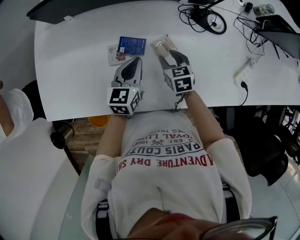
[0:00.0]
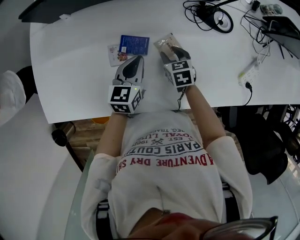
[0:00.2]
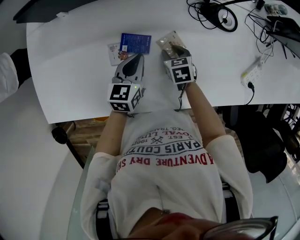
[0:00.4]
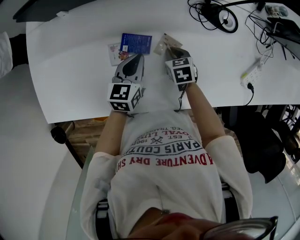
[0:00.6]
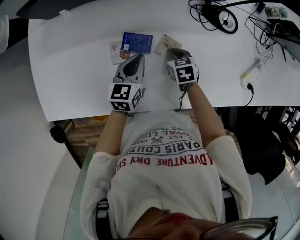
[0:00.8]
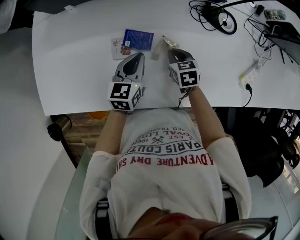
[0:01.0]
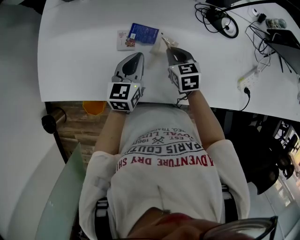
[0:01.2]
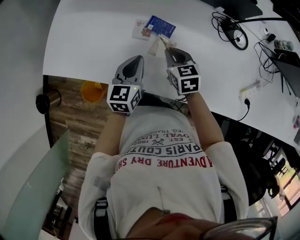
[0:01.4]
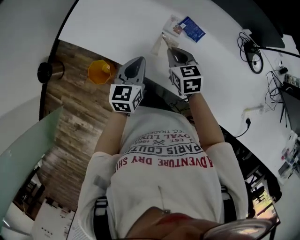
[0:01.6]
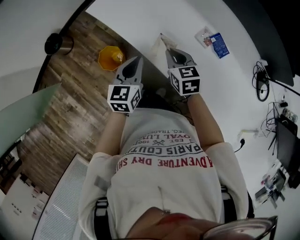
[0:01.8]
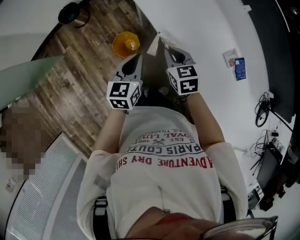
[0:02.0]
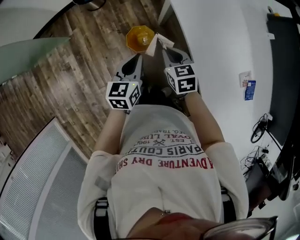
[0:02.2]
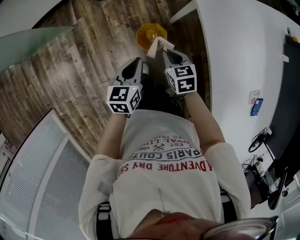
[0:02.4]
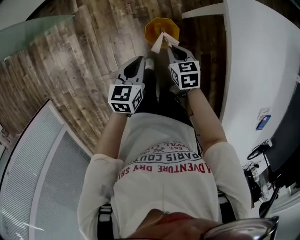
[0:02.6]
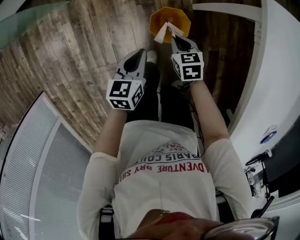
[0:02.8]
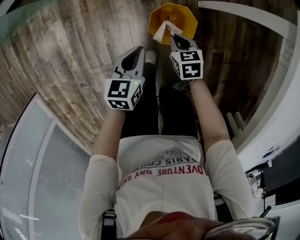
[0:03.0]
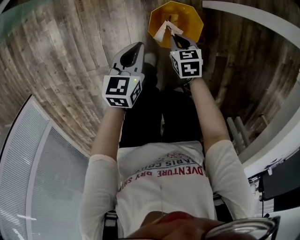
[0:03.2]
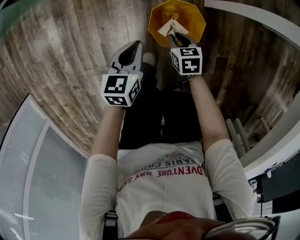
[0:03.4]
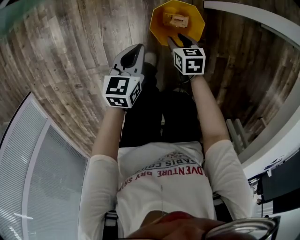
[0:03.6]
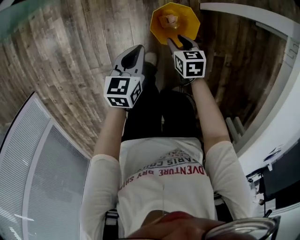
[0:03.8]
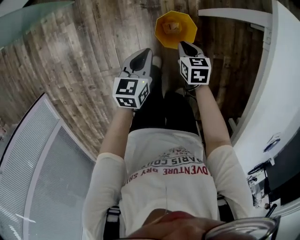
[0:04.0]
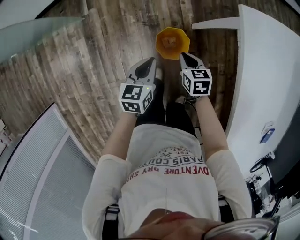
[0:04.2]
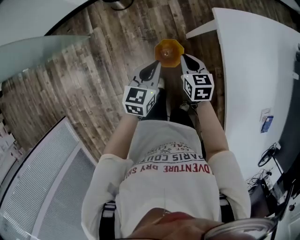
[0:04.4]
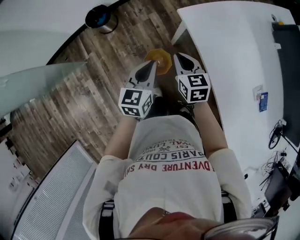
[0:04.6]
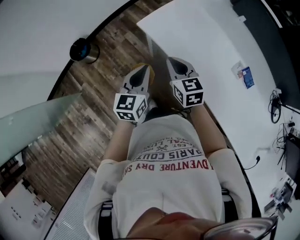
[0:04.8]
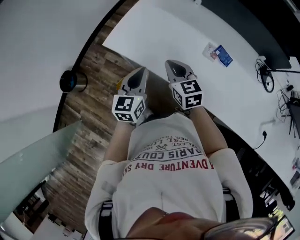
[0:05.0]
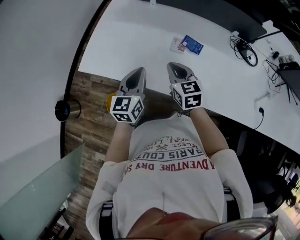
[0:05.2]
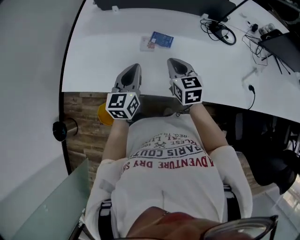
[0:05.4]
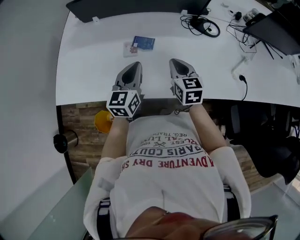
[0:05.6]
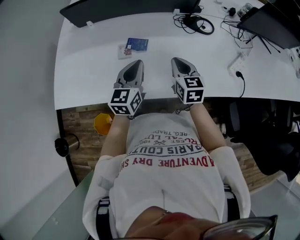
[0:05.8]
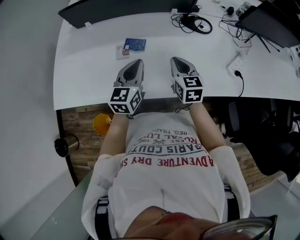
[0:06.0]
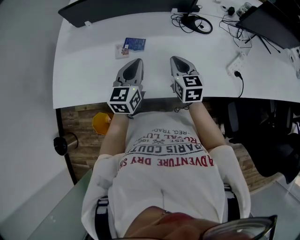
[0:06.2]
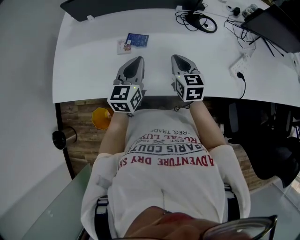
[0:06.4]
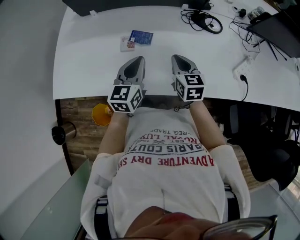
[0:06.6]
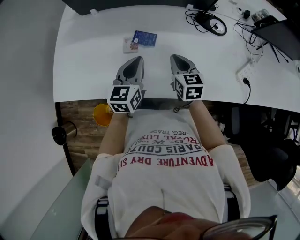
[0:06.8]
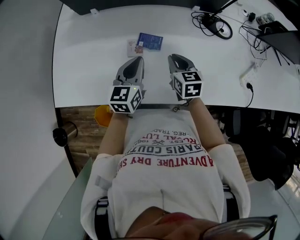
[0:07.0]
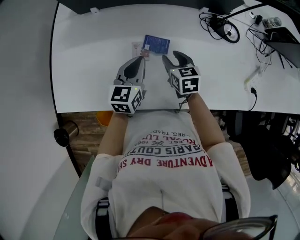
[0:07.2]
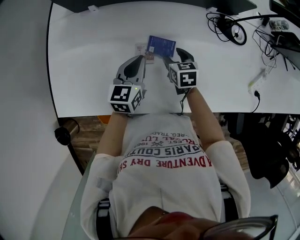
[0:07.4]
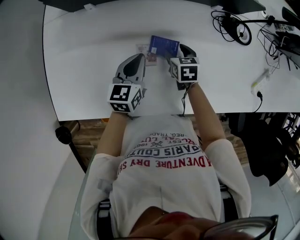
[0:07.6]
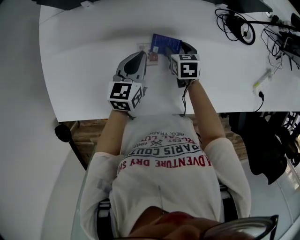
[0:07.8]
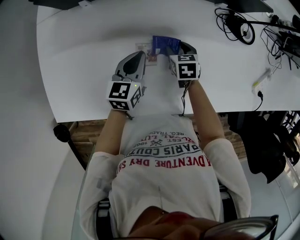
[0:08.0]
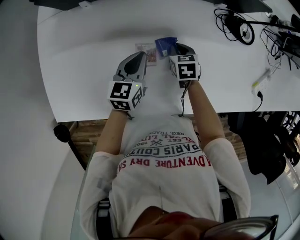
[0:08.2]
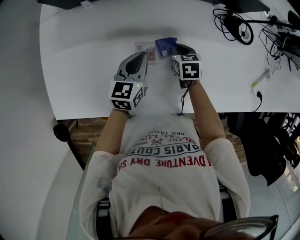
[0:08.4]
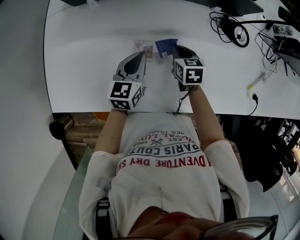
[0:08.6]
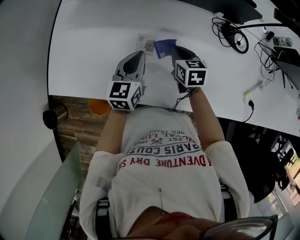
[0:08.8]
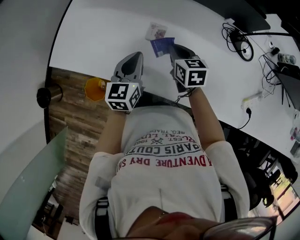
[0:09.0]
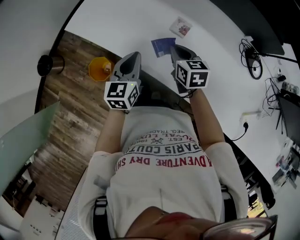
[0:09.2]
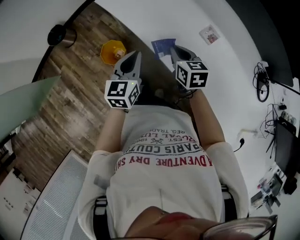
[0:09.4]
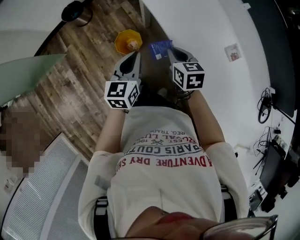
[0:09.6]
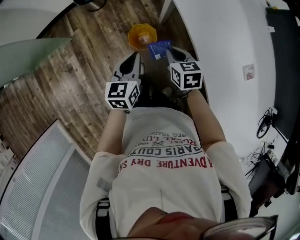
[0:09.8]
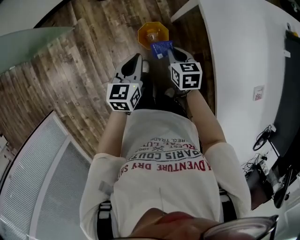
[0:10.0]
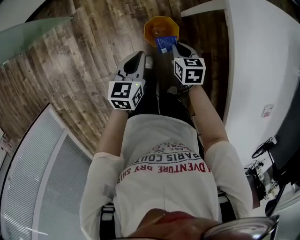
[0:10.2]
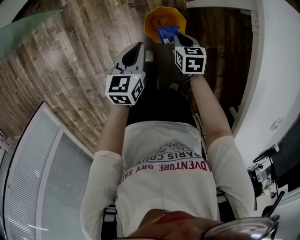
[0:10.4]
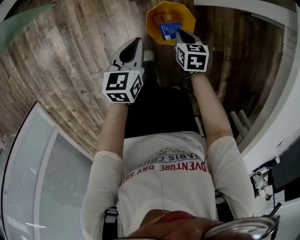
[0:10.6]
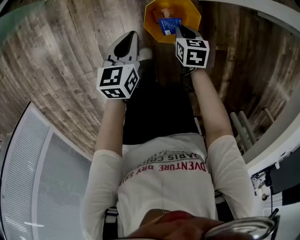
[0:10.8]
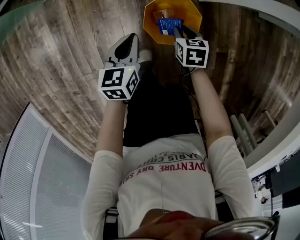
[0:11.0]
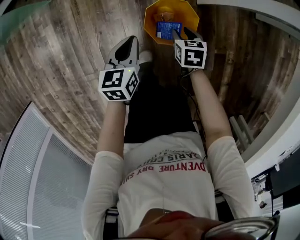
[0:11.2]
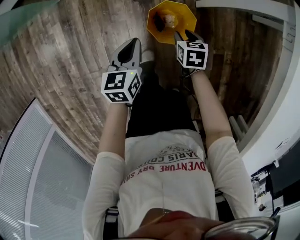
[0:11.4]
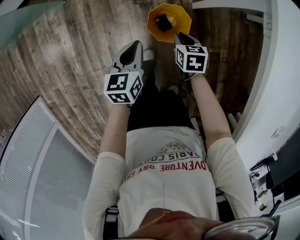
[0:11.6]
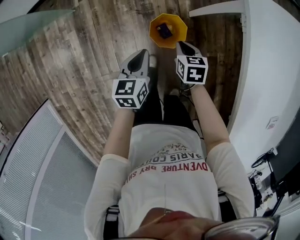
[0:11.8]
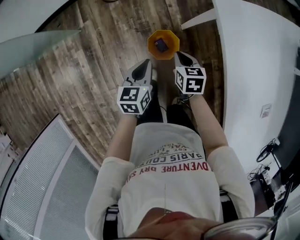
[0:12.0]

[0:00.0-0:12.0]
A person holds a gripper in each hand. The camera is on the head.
0:00.0 to 0:01.6: The left gripper changes place by some 25 cm, and swivels about 30 degrees. Meanwhile the right gripper moves some 25 cm, changes its angle by roughly 30 degrees, and closes its fingers.
0:01.6 to 0:03.0: The pair of grippers is taken some 50 cm. The left gripper rotates about 60 degrees; the right gripper changes its angle by about 60 degrees.
0:03.0 to 0:04.4: Both grippers travel together upward, about 30 cm. The right gripper rotates approximately 20 degrees, and opens and closes again.
0:04.4 to 0:06.0: Both grippers are carried some 70 cm. The left gripper turns by about 70 degrees, while the right gripper turns by roughly 80 degrees.
0:06.0 to 0:07.6: The left gripper heads forward, to the left and downward, covering approximately 25 cm. Meanwhile the right gripper moves forward, downward and to the left, roughly 30 cm, rotates some 30 degrees, and opens.
0:07.6 to 0:09.0: The right gripper moves about 15 cm, turns by about 30 degrees, and closes up; the left gripper ends up roughly 15 cm from where it was, and changes its angle by some 30 degrees.
0:09.0 to 0:10.4: Both grippers are carried approximately 60 cm. The left gripper changes its angle by some 60 degrees, while the right gripper rotates roughly 60 degrees.
0:10.4 to 0:12.0: Both grippers move upward, approximately 15 cm. The right gripper opens, then closes once more.

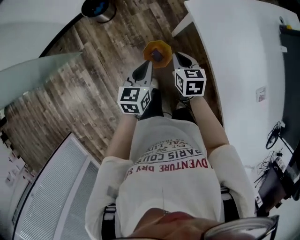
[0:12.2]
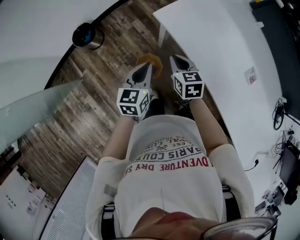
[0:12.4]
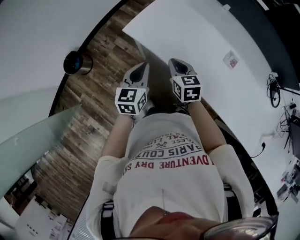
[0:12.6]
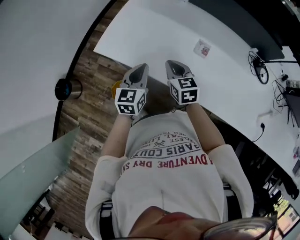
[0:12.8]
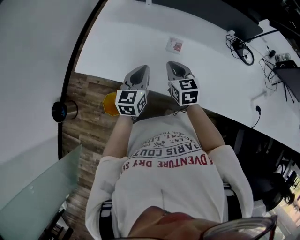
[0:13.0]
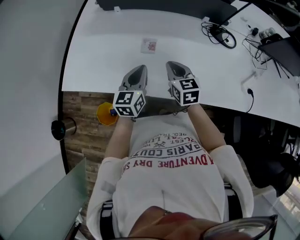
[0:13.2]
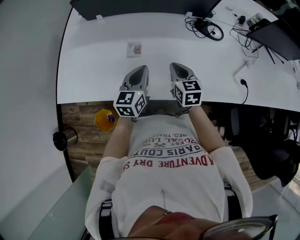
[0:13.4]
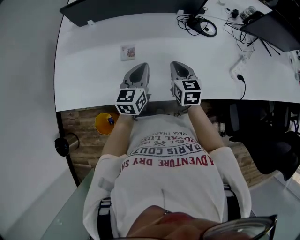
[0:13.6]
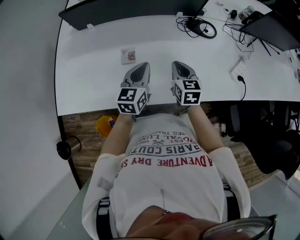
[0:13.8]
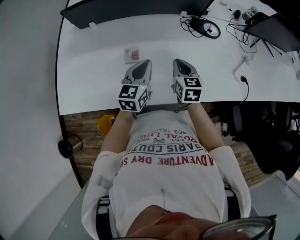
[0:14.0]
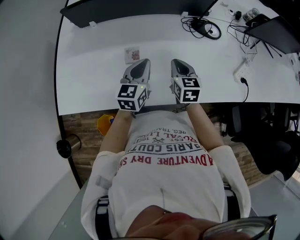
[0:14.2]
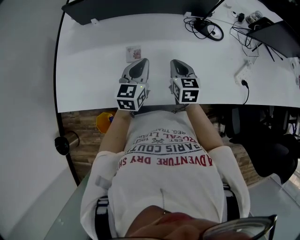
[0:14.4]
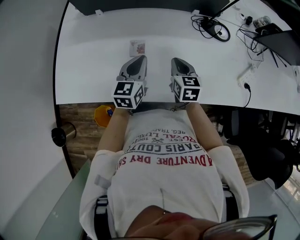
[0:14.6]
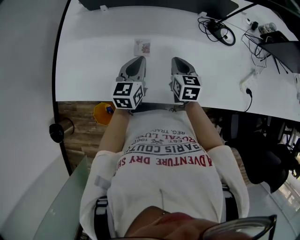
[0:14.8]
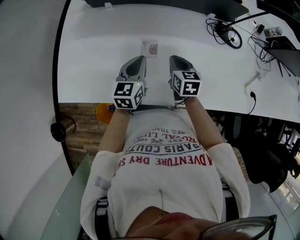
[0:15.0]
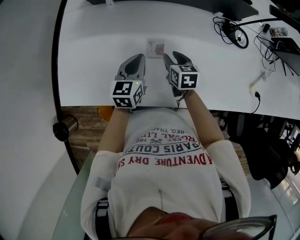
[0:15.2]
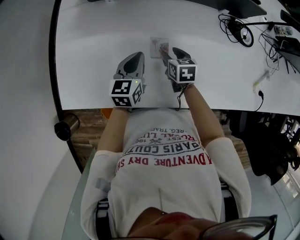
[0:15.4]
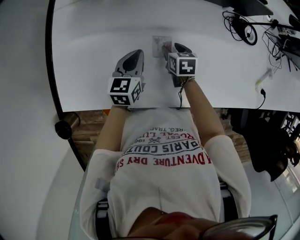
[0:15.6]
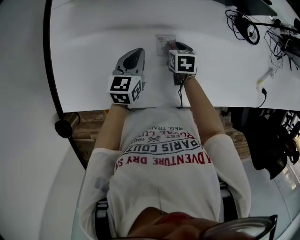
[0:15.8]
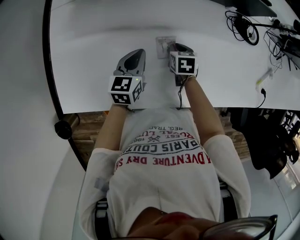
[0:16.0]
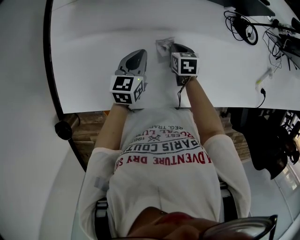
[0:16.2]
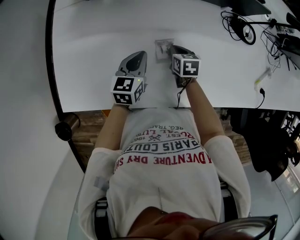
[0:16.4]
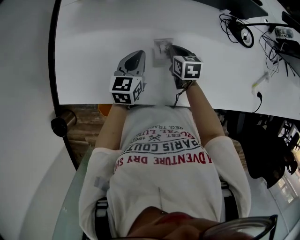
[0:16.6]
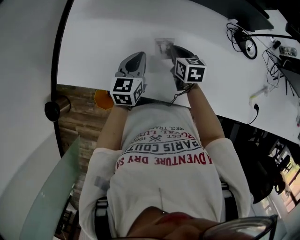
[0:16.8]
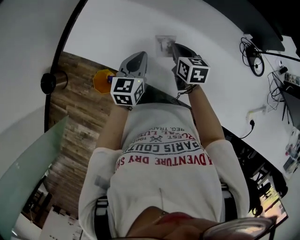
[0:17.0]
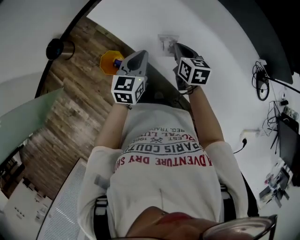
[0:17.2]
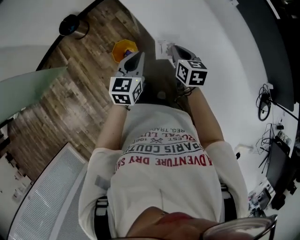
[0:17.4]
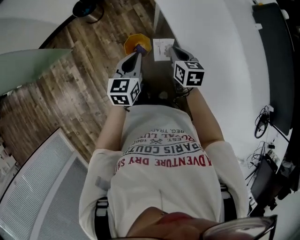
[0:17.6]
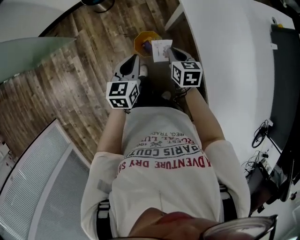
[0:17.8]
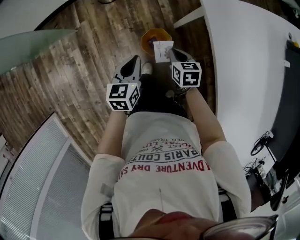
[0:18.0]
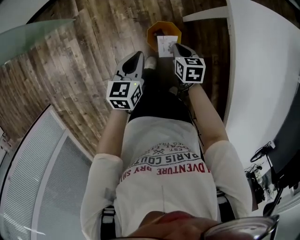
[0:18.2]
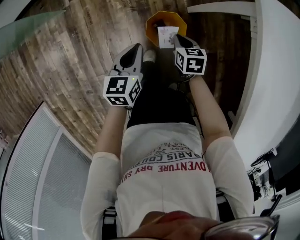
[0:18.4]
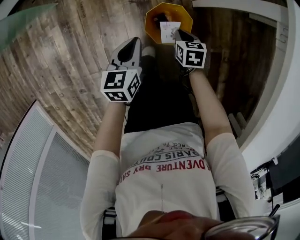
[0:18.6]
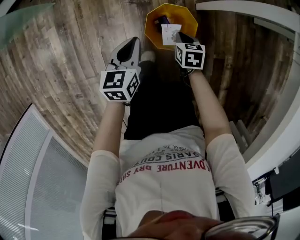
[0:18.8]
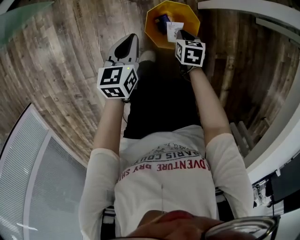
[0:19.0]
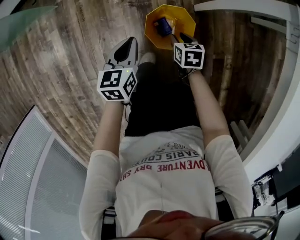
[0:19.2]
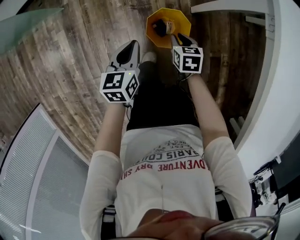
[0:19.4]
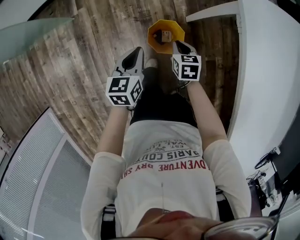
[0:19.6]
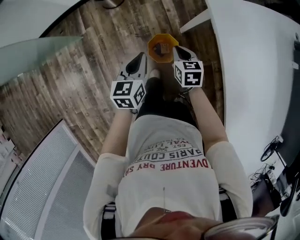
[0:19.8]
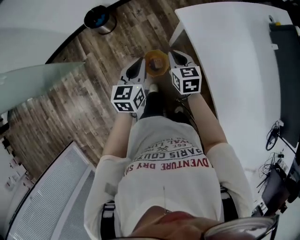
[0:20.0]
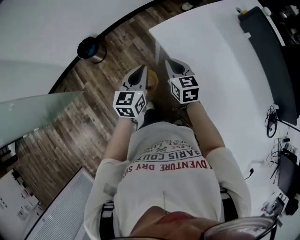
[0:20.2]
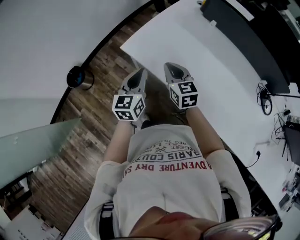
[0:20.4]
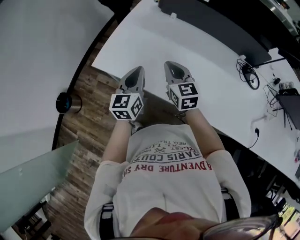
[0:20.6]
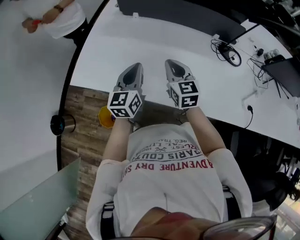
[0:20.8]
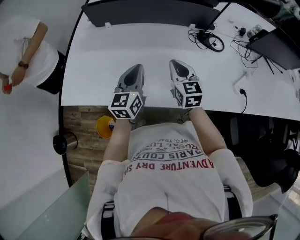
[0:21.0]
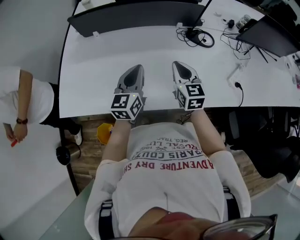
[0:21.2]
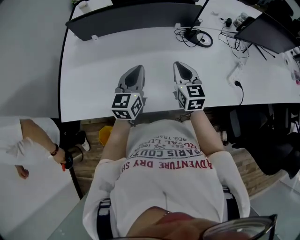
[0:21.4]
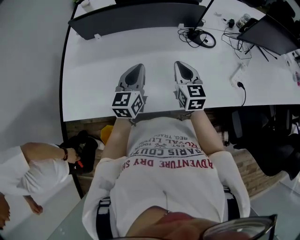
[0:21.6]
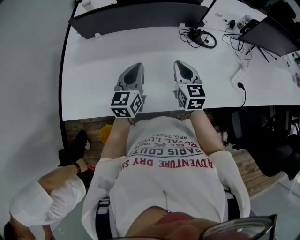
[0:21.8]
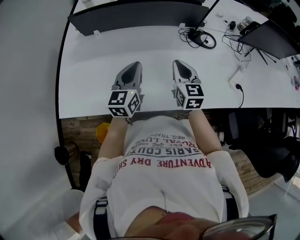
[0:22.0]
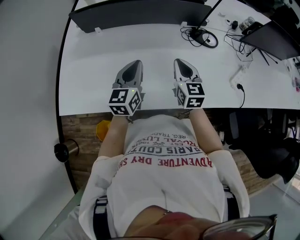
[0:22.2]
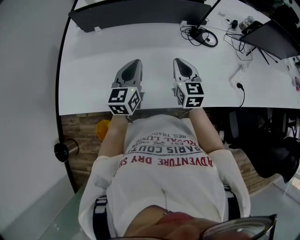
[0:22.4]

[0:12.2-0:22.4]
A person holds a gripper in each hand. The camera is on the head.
0:12.2 to 0:13.6: The two grippers travel together, roughly 60 cm. The right gripper changes its angle by about 70 degrees. Meanwhile the left gripper rotates approximately 70 degrees.
0:13.6 to 0:15.2: The left gripper heads to the left and forward, covering some 20 cm; the right gripper moves to the left, downward and forward, approximately 25 cm, and opens its fingers.
0:15.2 to 0:16.6: The right gripper closes.
0:16.6 to 0:18.0: The pair of grippers is taken approximately 60 cm. The left gripper turns by some 80 degrees; the right gripper swivels about 70 degrees.
0:18.0 to 0:19.4: The two grippers go about 30 cm downward.
0:19.4 to 0:21.0: The two grippers travel together, approximately 60 cm. The right gripper points its fingers roughly 40 degrees further upward, while the left gripper points its fingers roughly 30 degrees further upward.

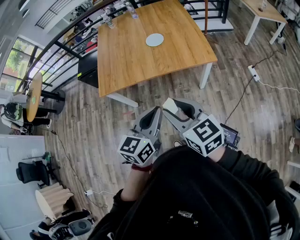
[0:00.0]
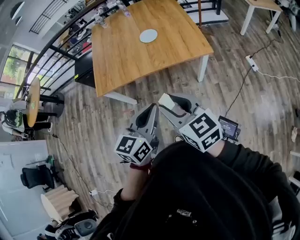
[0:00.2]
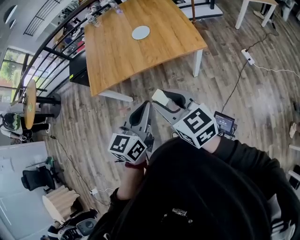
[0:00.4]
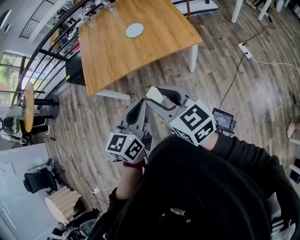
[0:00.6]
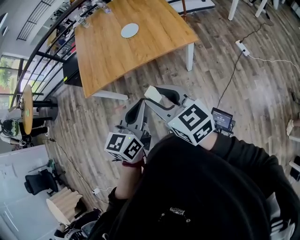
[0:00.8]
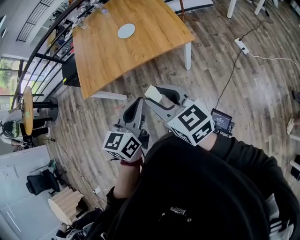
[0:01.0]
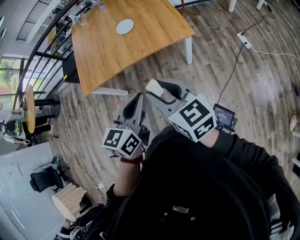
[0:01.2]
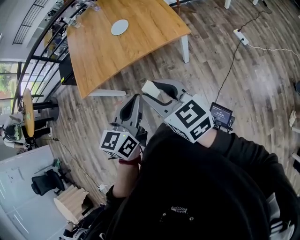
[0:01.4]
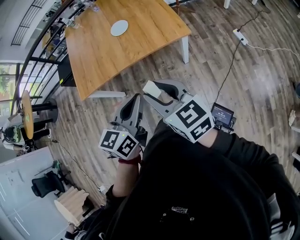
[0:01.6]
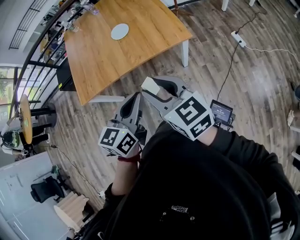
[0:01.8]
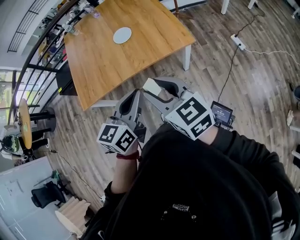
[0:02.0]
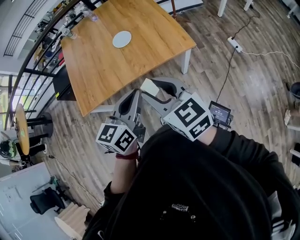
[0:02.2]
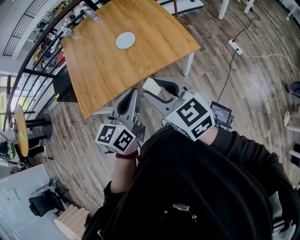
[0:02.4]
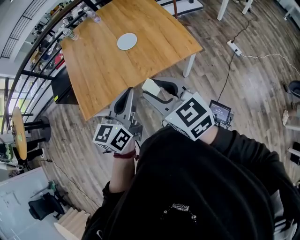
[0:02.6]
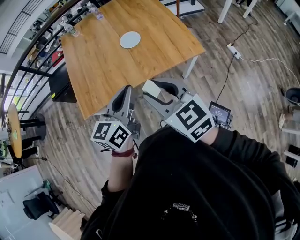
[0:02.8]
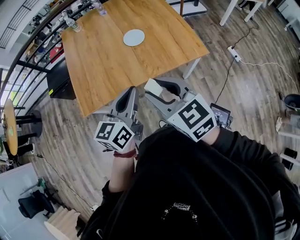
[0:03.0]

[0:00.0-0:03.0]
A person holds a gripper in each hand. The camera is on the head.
0:00.0 to 0:01.6: Both grippers travel together to the right, approximately 10 cm.
0:01.6 to 0:03.0: The grippers both shift to the left and forward by some 20 cm.
